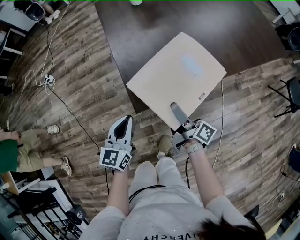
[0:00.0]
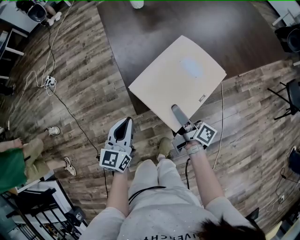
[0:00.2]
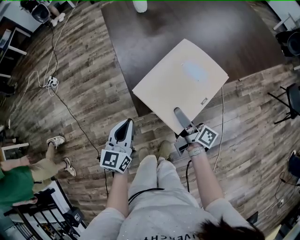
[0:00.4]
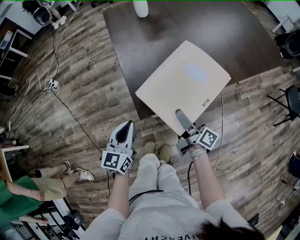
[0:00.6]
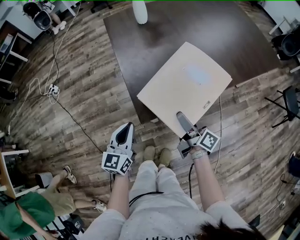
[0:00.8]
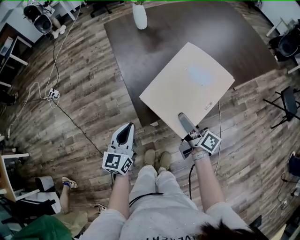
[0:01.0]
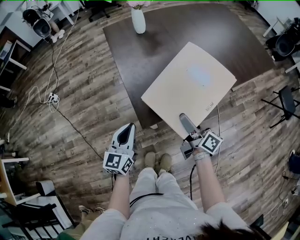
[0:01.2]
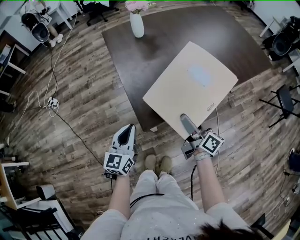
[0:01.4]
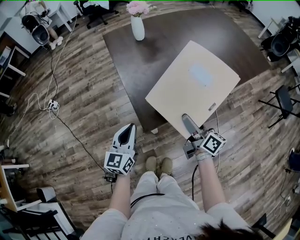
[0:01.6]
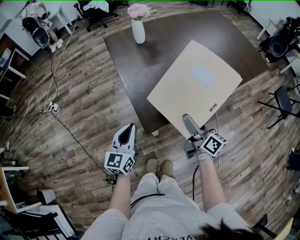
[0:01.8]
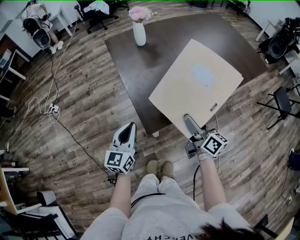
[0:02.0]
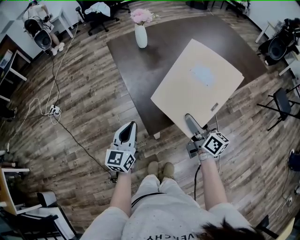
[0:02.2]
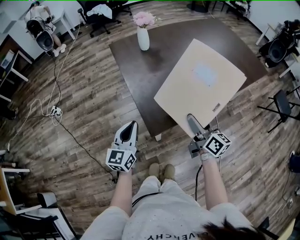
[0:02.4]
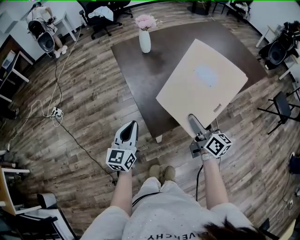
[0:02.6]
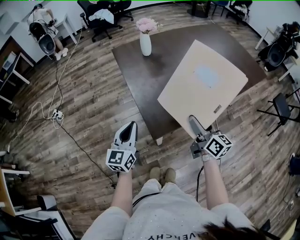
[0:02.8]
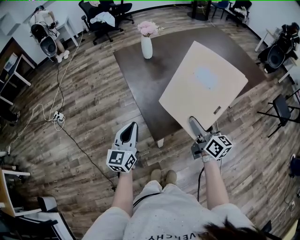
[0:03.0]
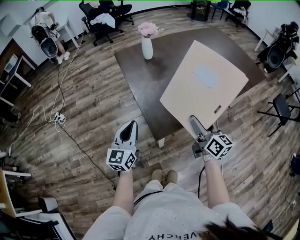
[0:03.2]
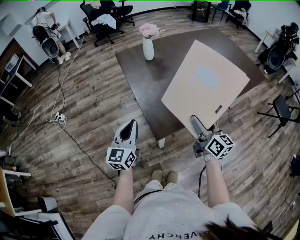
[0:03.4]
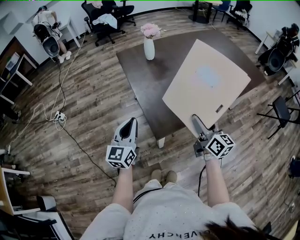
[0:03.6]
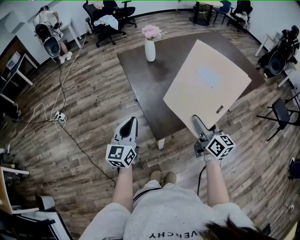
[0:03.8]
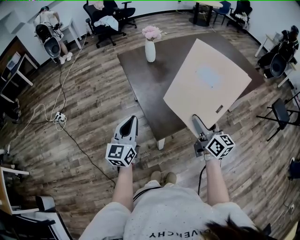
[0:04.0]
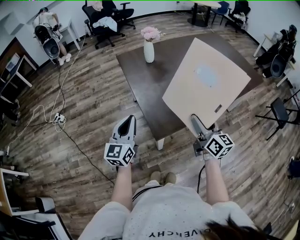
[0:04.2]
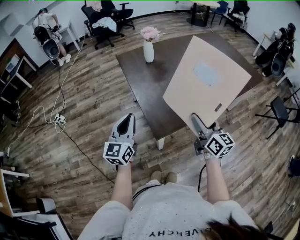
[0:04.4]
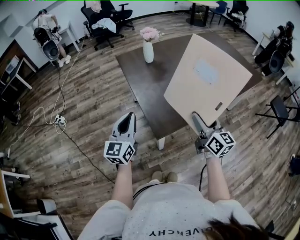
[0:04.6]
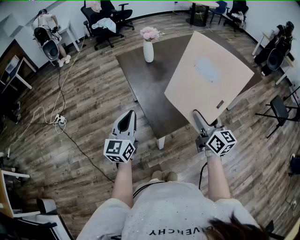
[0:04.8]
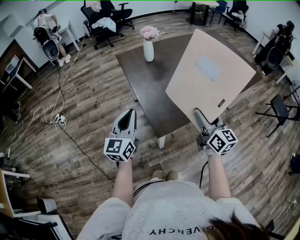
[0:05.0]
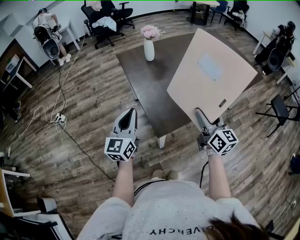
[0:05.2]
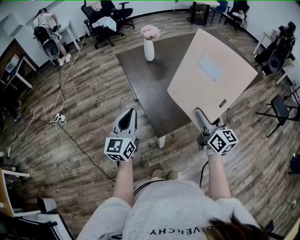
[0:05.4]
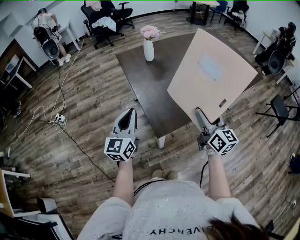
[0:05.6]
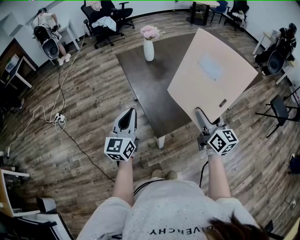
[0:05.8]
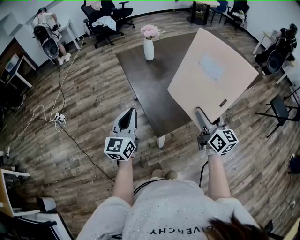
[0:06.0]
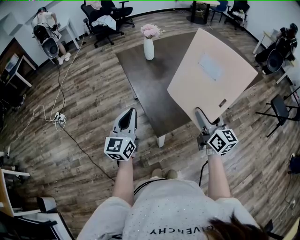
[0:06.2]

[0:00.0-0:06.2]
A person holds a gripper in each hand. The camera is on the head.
0:00.0 to 0:01.6: The left gripper goes about 10 cm upward, while the right gripper goes about 10 cm upward, and turns by roughly 30 degrees.
0:01.6 to 0:03.2: The right gripper goes roughly 10 cm upward, and rotates about 20 degrees. Meanwhile the left gripper heads upward and to the left, covering roughly 10 cm.
0:03.2 to 0:04.6: The right gripper moves roughly 5 cm; the left gripper goes about 5 cm upward.
0:04.6 to 0:06.2: The grippers make only small movements.

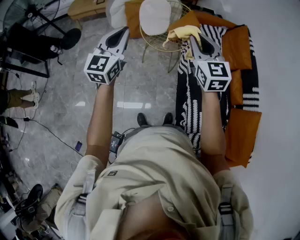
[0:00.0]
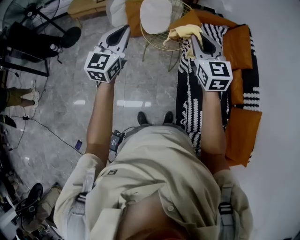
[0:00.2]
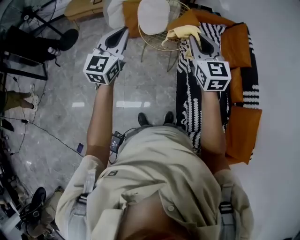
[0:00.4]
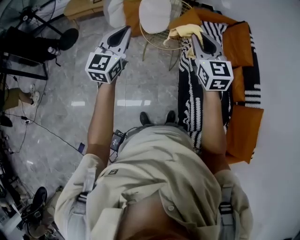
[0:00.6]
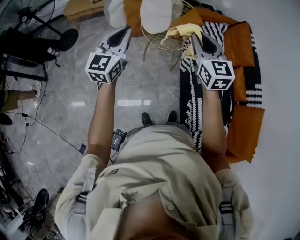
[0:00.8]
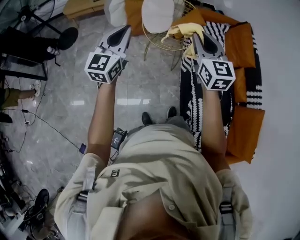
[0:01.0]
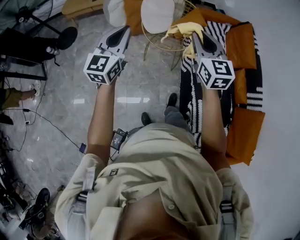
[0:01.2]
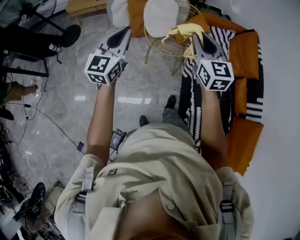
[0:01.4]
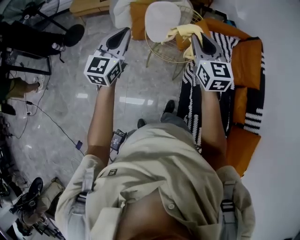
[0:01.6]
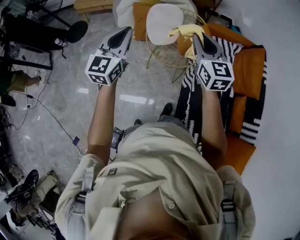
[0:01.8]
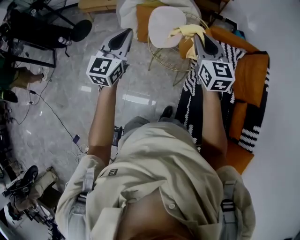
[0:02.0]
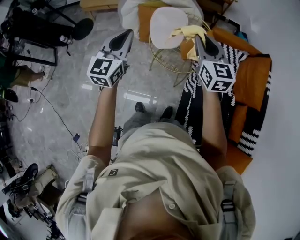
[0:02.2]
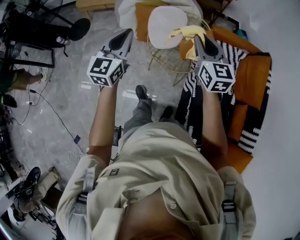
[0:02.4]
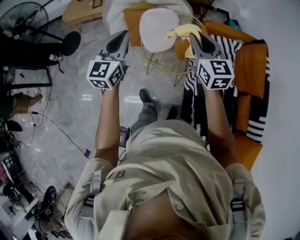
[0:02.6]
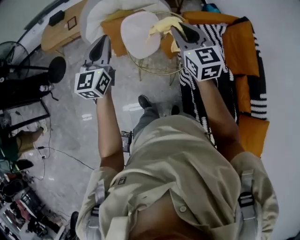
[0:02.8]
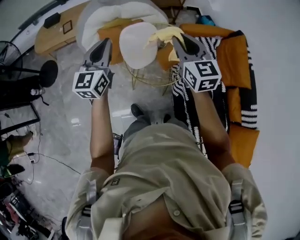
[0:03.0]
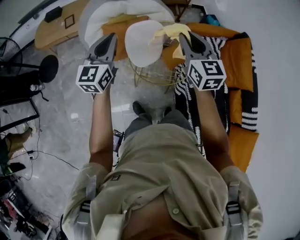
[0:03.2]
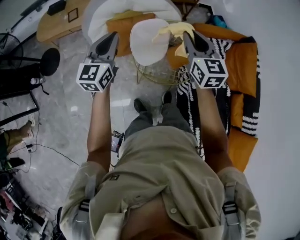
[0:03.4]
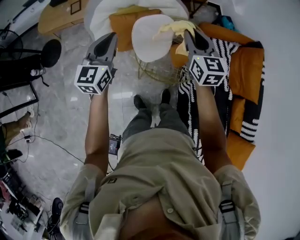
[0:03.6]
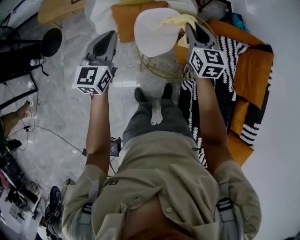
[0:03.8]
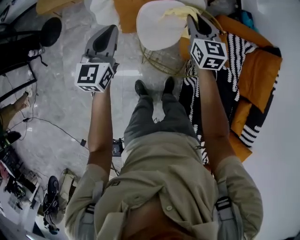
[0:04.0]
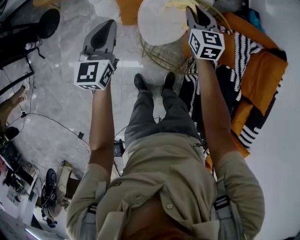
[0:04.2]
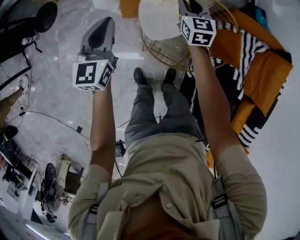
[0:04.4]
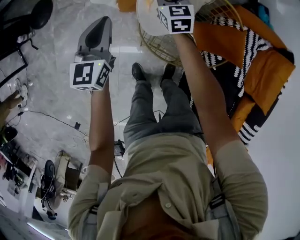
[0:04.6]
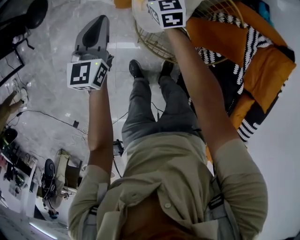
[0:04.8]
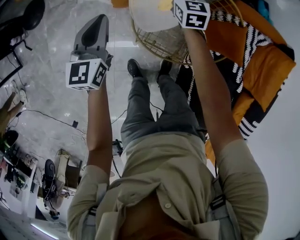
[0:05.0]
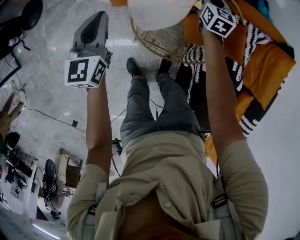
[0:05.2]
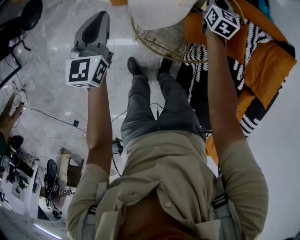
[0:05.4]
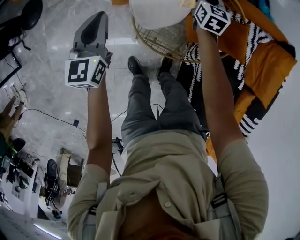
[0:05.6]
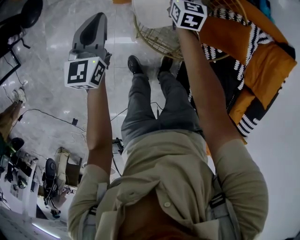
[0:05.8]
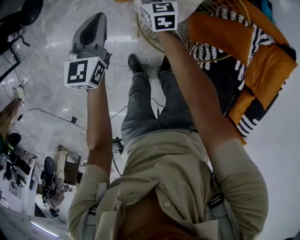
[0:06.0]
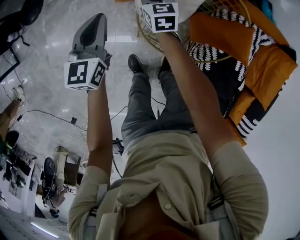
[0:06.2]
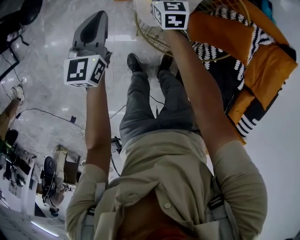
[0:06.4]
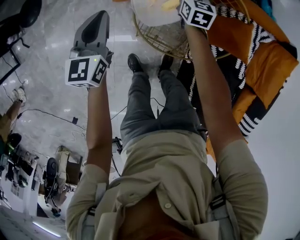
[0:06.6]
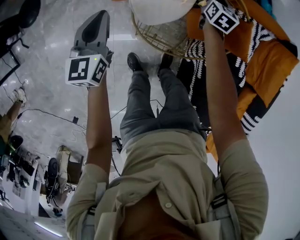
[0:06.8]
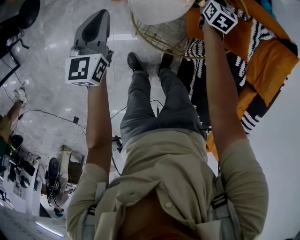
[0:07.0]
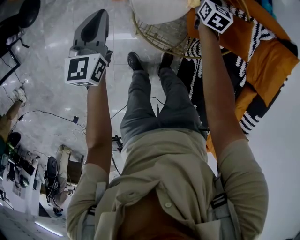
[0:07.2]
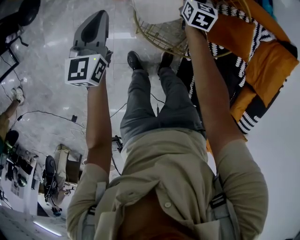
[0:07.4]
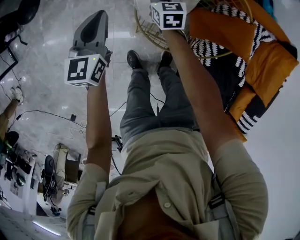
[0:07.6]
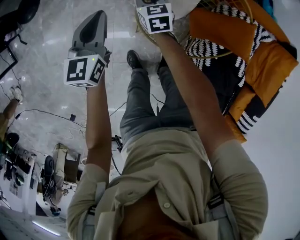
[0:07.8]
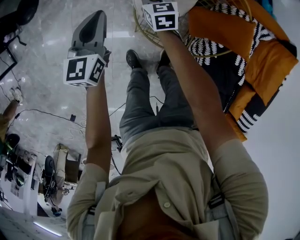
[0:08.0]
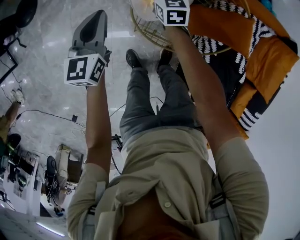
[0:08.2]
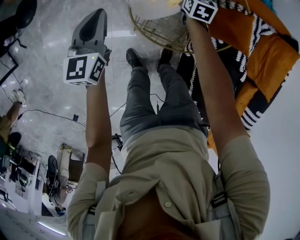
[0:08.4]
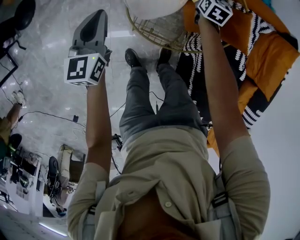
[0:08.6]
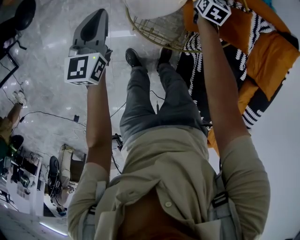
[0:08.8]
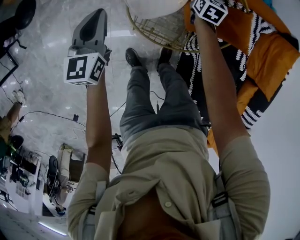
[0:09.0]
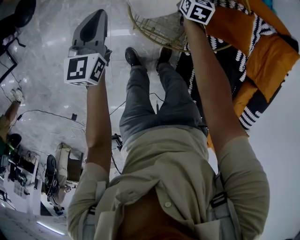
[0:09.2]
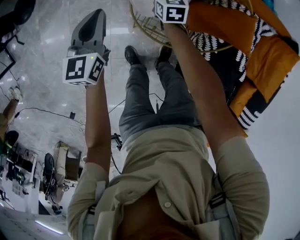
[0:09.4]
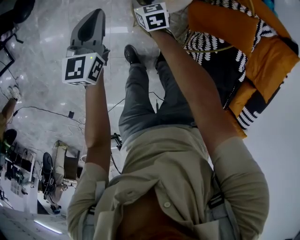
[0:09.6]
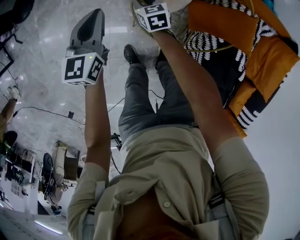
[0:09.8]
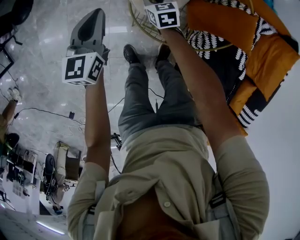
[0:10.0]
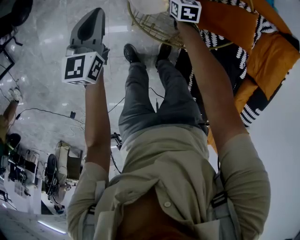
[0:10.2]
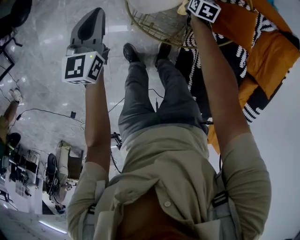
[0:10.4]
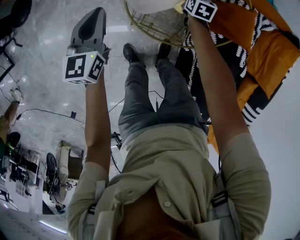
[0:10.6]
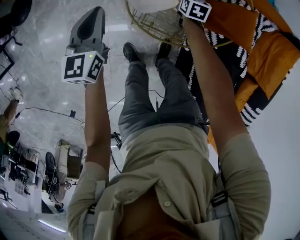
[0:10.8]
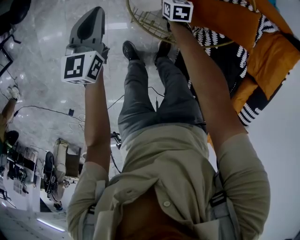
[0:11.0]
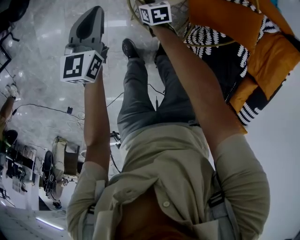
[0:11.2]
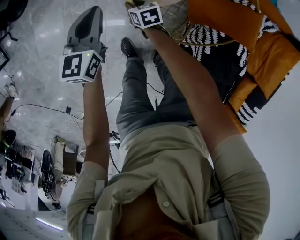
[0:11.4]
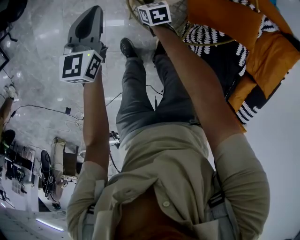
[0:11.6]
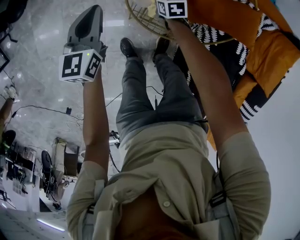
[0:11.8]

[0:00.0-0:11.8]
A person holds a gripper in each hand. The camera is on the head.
0:00.0 to 0:01.4: Both grippers move forward, about 15 cm.
0:01.4 to 0:03.0: The two grippers go about 30 cm forward.
0:03.0 to 0:04.4: The right gripper is displaced downward and forward by approximately 40 cm. The left gripper is displaced downward, forward and to the left by some 30 cm, and rotates roughly 20 degrees.
0:04.4 to 0:06.0: The left gripper moves downward, some 10 cm. Meanwhile the right gripper goes left and right, some 30 cm each way, reversing 2 times.
0:06.0 to 0:07.4: The right gripper shifts about 20 cm to the right, and turns by about 20 degrees.
0:07.4 to 0:08.8: The right gripper reaches roughly 20 cm to the left, then returns.
0:08.8 to 0:10.4: The right gripper moves downward, some 10 cm, and moves about 30 cm to the left and comes back.
0:10.4 to 0:11.8: The right gripper turns by some 30 degrees.

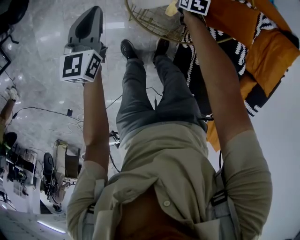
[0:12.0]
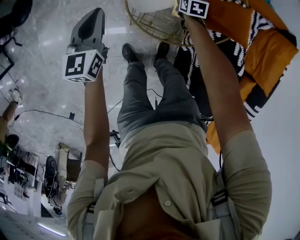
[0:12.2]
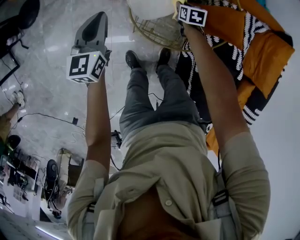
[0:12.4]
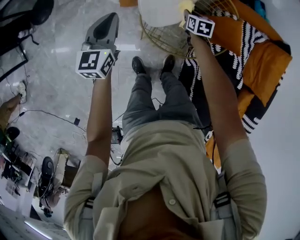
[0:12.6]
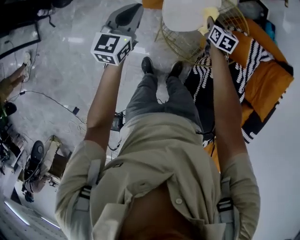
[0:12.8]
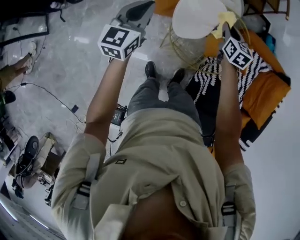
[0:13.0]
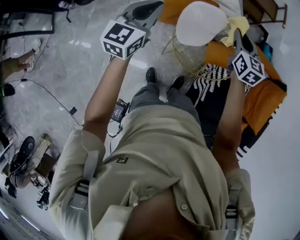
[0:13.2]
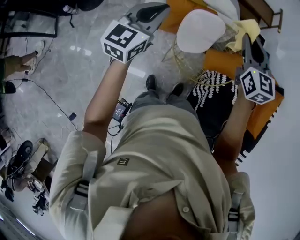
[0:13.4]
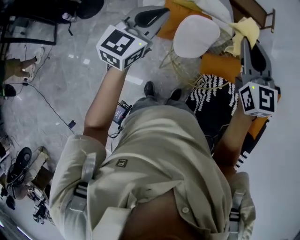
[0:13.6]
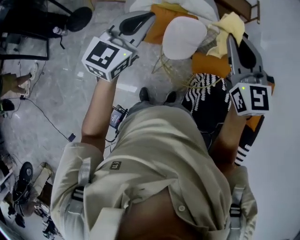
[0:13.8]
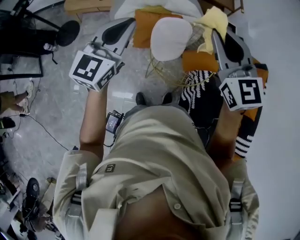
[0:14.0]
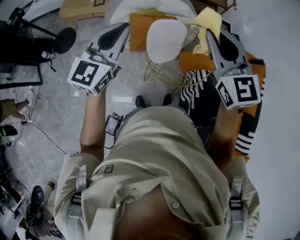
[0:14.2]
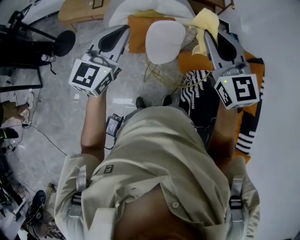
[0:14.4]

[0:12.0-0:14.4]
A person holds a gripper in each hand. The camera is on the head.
0:12.0 to 0:13.2: The right gripper moves upward, about 50 cm, and angles its fingers upward, by about 30 degrees, while the left gripper shifts some 30 cm upward.
0:13.2 to 0:14.4: The right gripper travels upward and backward by some 30 cm, and rotates approximately 30 degrees; the left gripper moves upward and backward, about 20 cm.

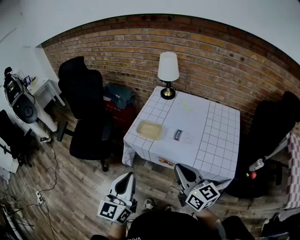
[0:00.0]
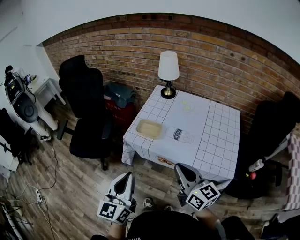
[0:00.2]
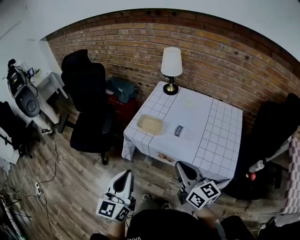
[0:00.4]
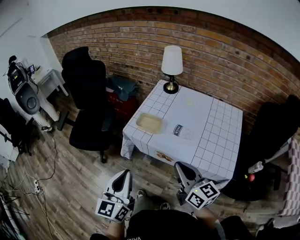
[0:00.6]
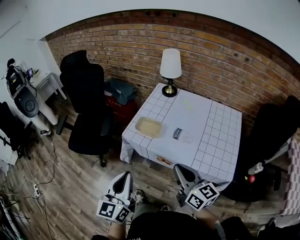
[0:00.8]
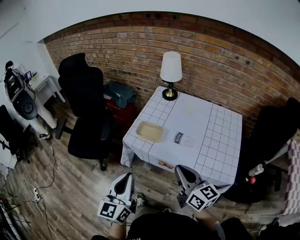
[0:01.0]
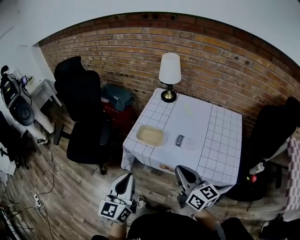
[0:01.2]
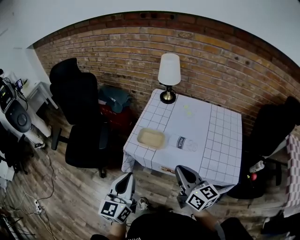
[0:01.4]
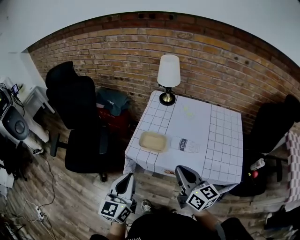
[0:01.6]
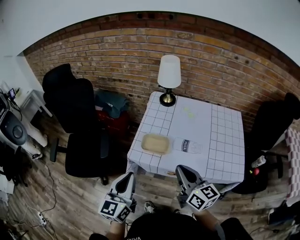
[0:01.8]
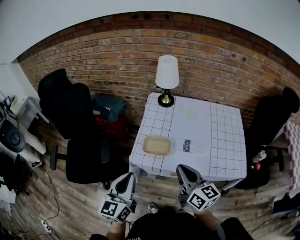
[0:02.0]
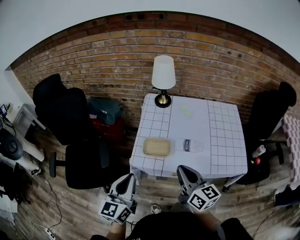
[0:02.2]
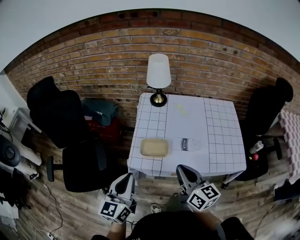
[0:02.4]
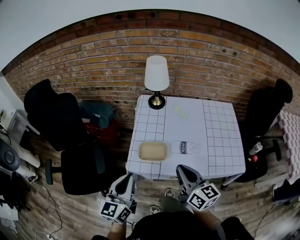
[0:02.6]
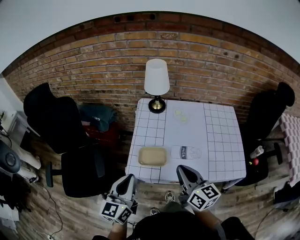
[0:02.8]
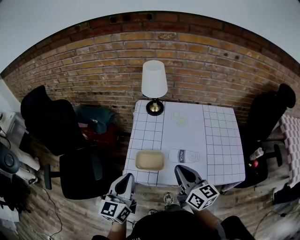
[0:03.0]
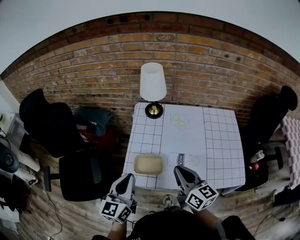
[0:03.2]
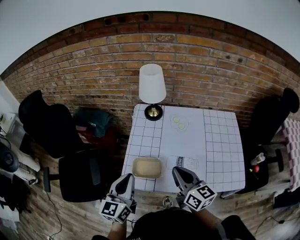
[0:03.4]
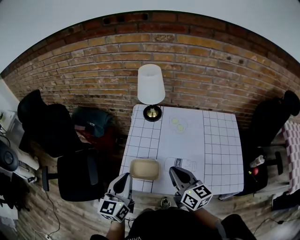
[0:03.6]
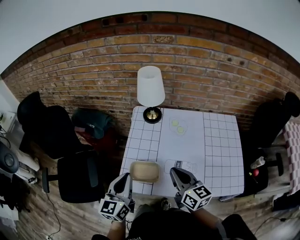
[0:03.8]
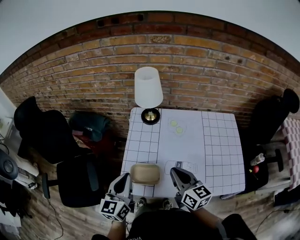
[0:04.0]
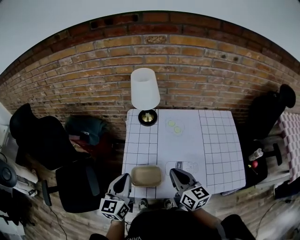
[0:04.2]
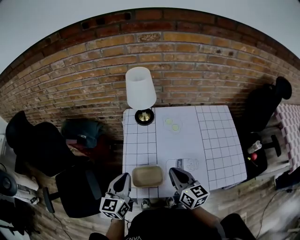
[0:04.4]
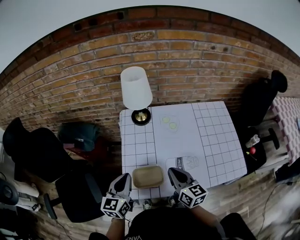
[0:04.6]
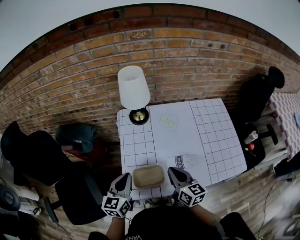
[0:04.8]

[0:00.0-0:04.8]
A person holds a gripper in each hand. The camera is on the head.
0:00.0 to 0:01.6: Both grippers move forward, approximately 10 cm.
0:01.6 to 0:03.2: Both grippers travel together forward, roughly 15 cm.
0:03.2 to 0:04.8: The right gripper moves downward and forward, about 10 cm, while the left gripper travels forward and downward by some 15 cm.
